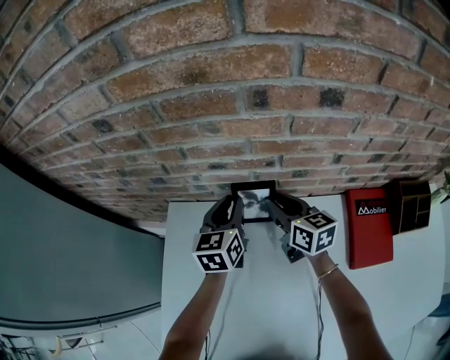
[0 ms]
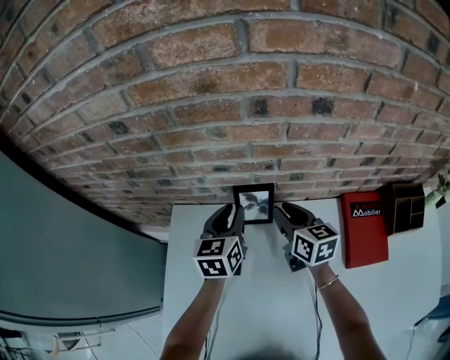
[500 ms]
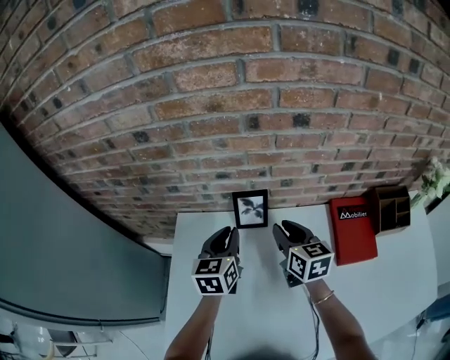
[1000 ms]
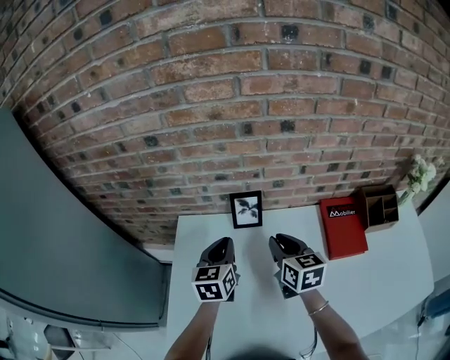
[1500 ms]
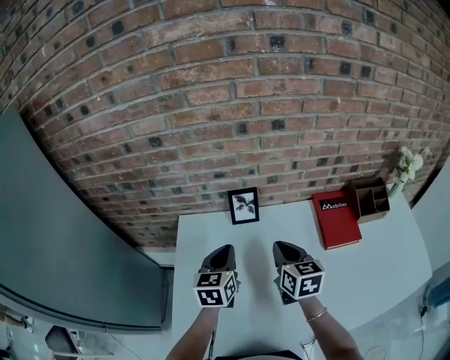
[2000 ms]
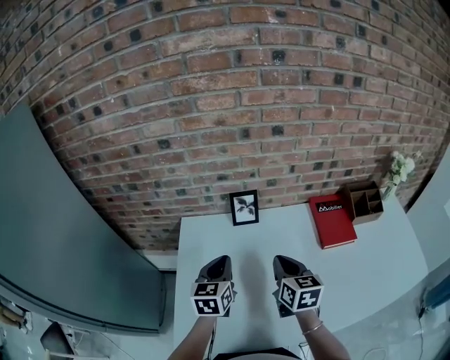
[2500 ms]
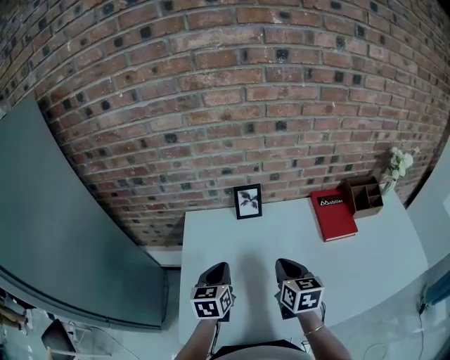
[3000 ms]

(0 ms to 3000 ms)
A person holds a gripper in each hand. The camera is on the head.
0 ms - 1500 ms: The right gripper is displaced backward and upward by approximately 20 cm. The left gripper is displaced backward by approximately 15 cm.
1500 ms - 3000 ms: The grippers both shift backward by roughly 15 cm.

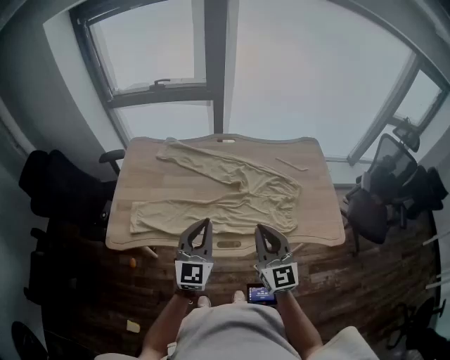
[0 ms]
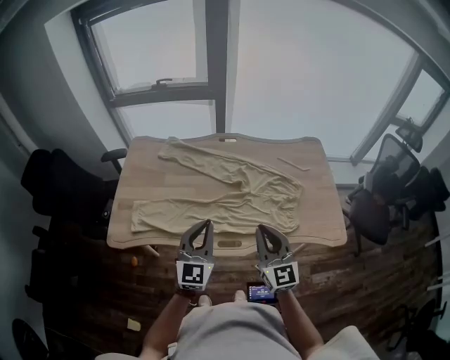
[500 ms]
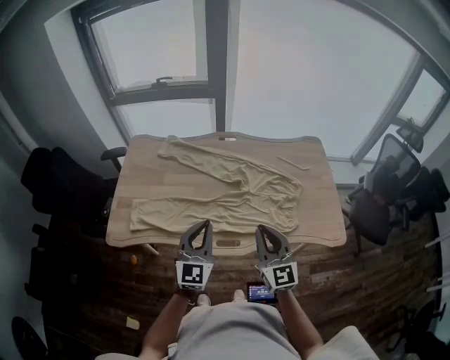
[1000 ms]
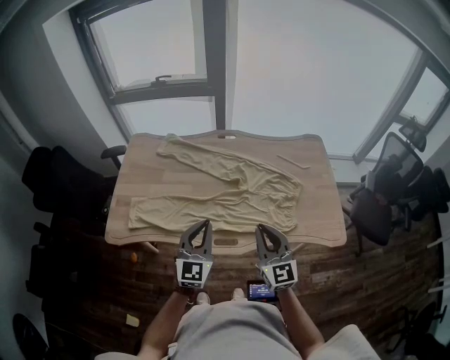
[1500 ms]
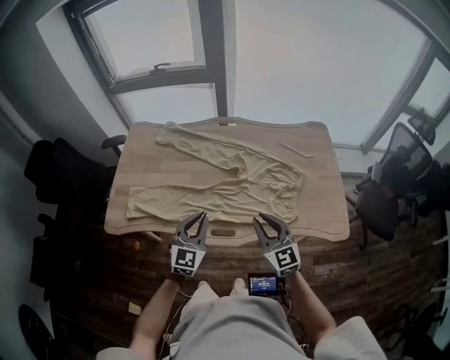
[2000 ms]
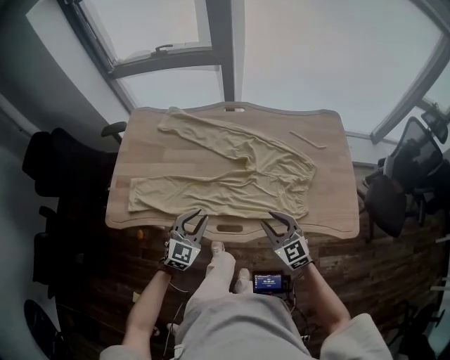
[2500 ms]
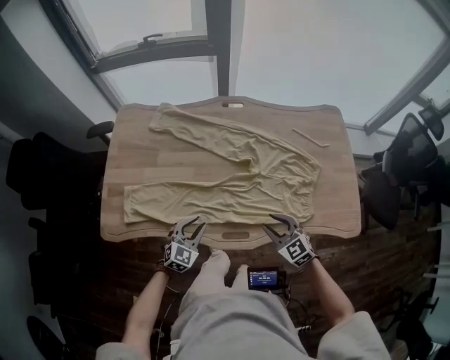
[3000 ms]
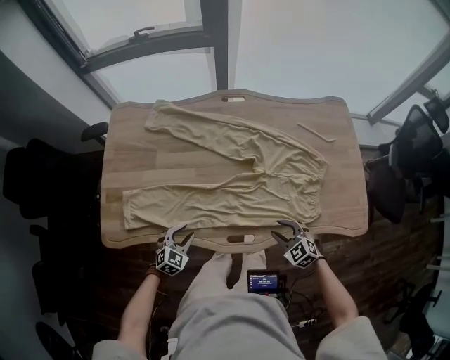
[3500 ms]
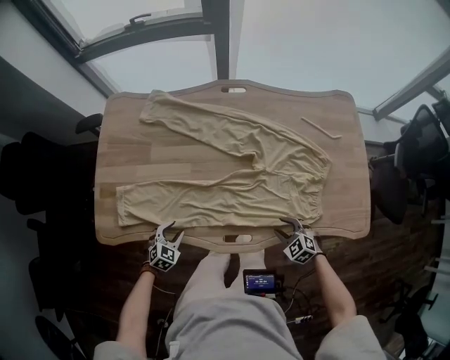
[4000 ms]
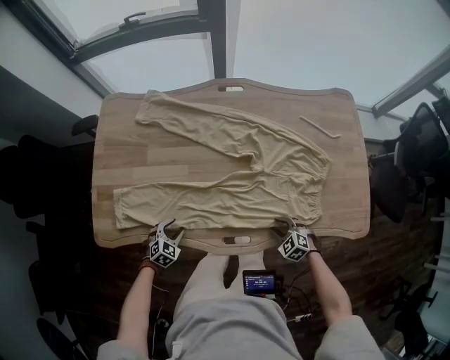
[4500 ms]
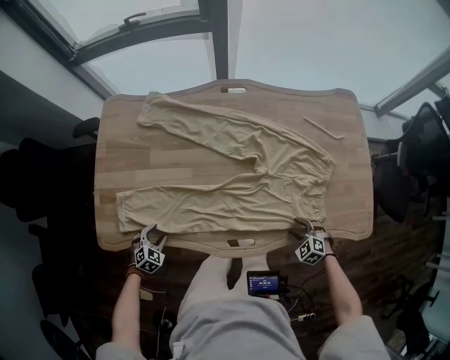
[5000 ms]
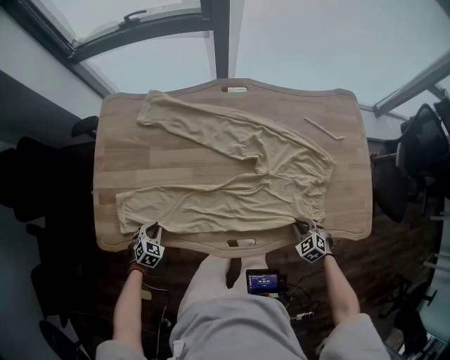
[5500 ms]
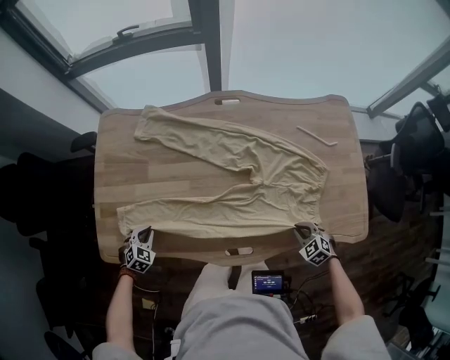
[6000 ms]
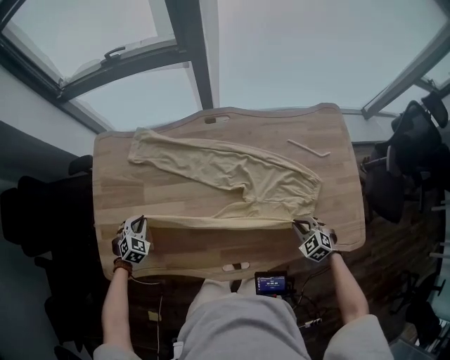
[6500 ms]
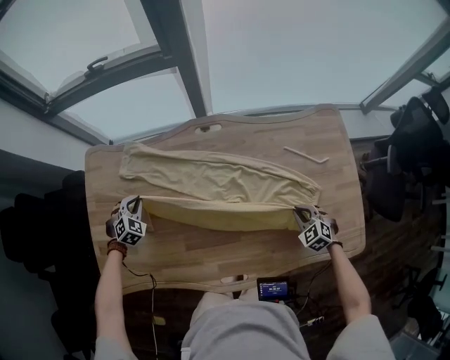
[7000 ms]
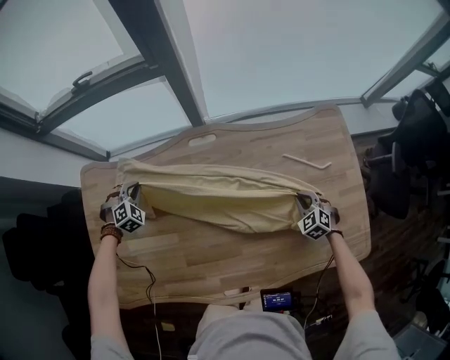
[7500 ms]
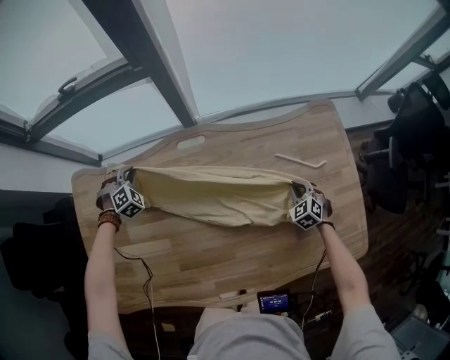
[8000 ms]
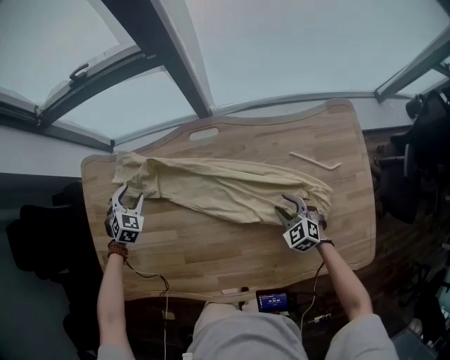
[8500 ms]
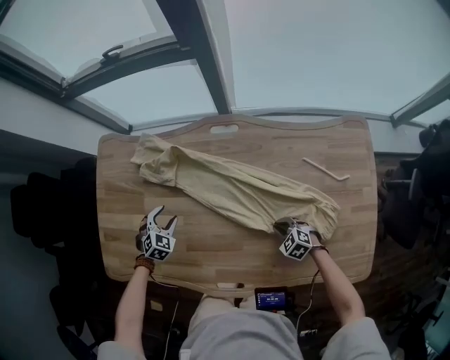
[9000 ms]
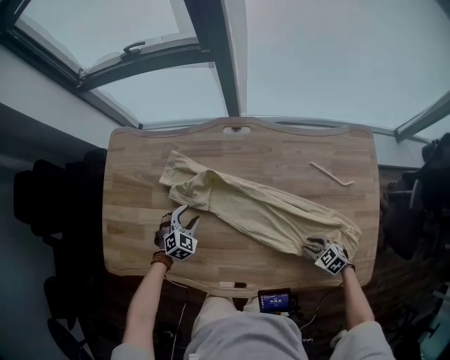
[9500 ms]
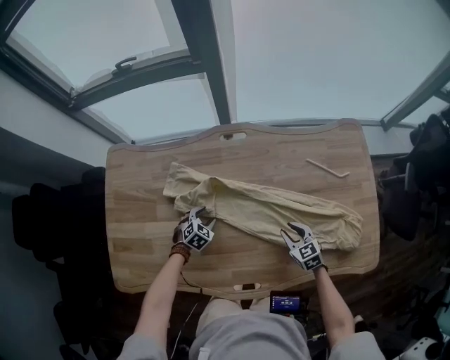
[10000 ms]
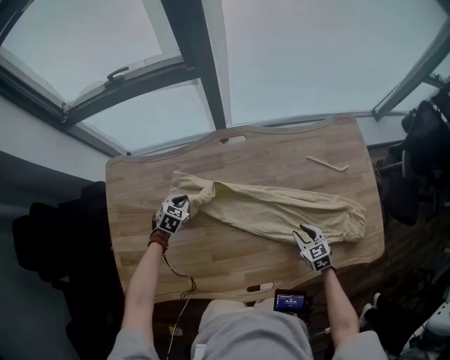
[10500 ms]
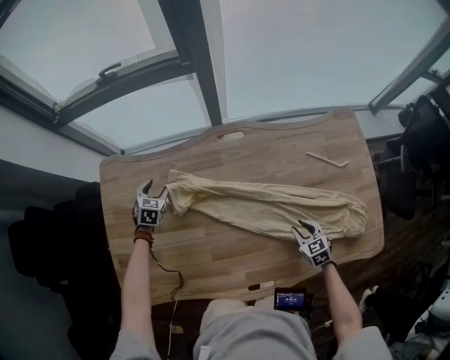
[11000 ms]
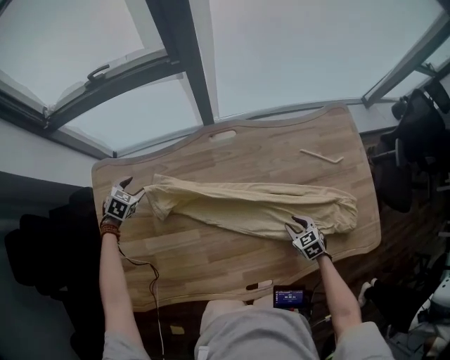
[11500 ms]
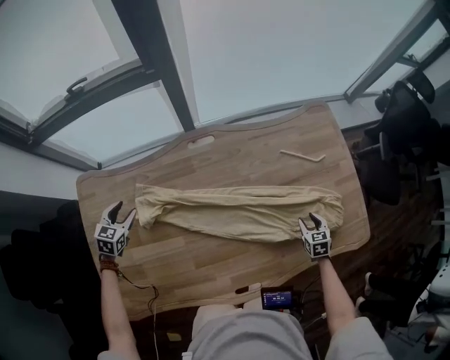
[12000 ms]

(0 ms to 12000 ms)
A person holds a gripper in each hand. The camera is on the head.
0 ms - 2000 ms: The right gripper goes approximately 10 cm downward and to the right, while the left gripper travels downward by about 10 cm.
2000 ms - 4000 ms: The left gripper heads downward and to the left, covering roughly 35 cm, angles its fingers downward, by about 40 degrees, and opens. Meanwhile the right gripper travels downward by approximately 30 cm, points its fingers some 50 degrees further downward, and opens.
4000 ms - 6000 ms: The left gripper goes about 15 cm to the left and forward, and closes its fingers; the right gripper is displaced to the right by about 5 cm, and closes.
6000 ms - 8000 ms: Both grippers move forward and to the right, some 40 cm. The left gripper swivels approximately 40 degrees. Meanwhile the right gripper rotates approximately 20 degrees.
8000 ms - 10000 ms: The right gripper ends up roughly 20 cm from where it was, swivels approximately 30 degrees, and opens up. The left gripper moves some 30 cm, turns by about 40 degrees, and opens up.
10000 ms - 12000 ms: The right gripper changes place by roughly 15 cm, and changes its angle by approximately 40 degrees; the left gripper shifts by approximately 30 cm, swivels about 20 degrees, and closes, then reopens.

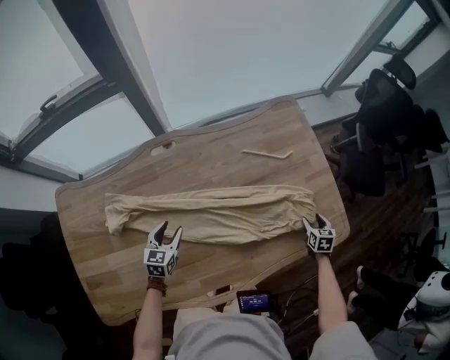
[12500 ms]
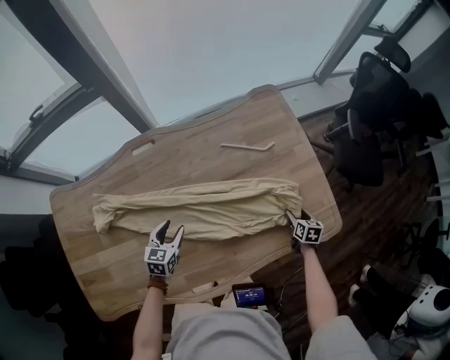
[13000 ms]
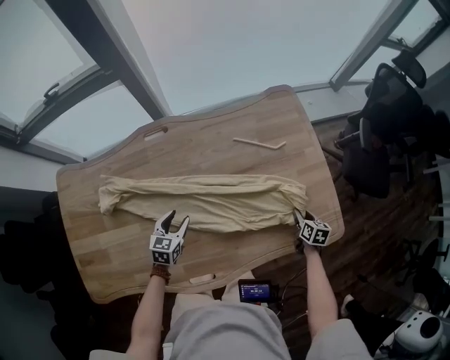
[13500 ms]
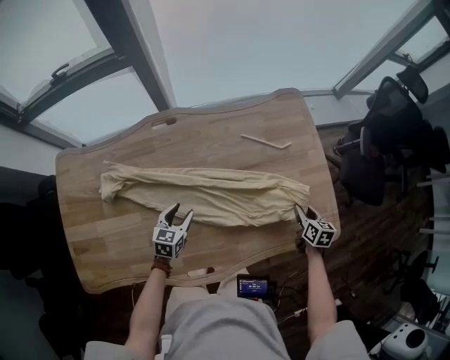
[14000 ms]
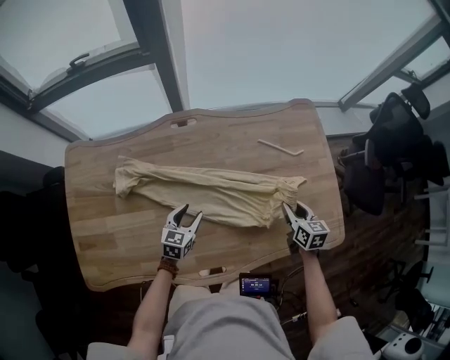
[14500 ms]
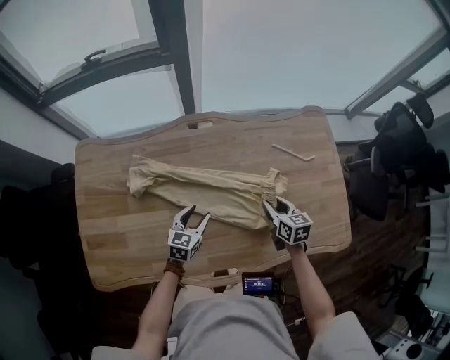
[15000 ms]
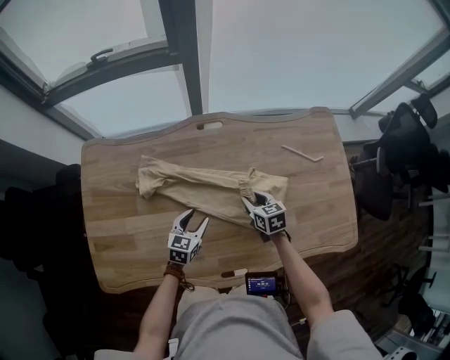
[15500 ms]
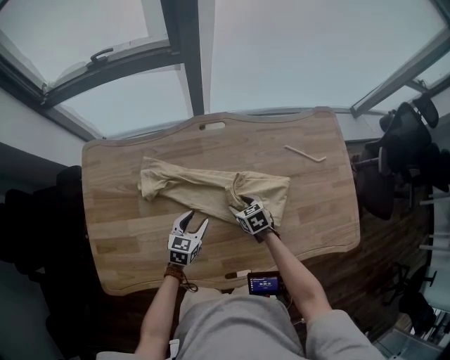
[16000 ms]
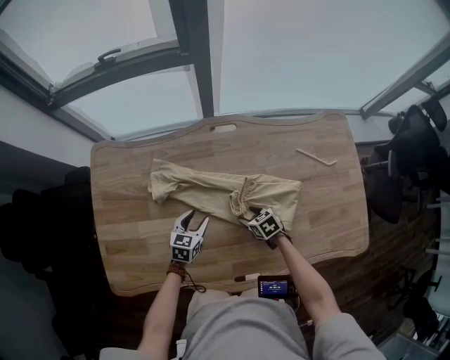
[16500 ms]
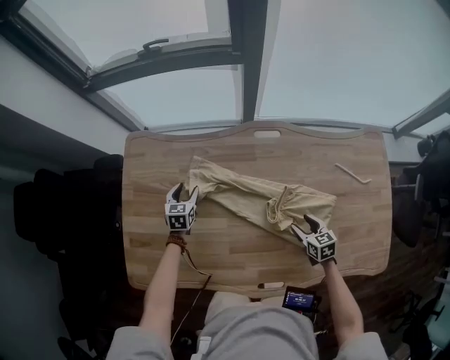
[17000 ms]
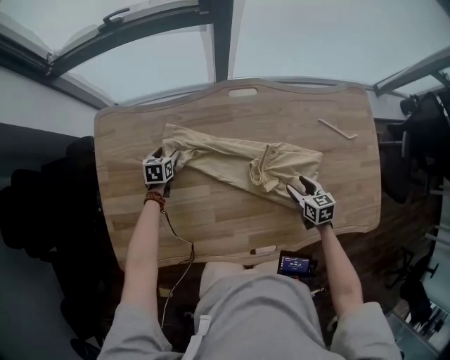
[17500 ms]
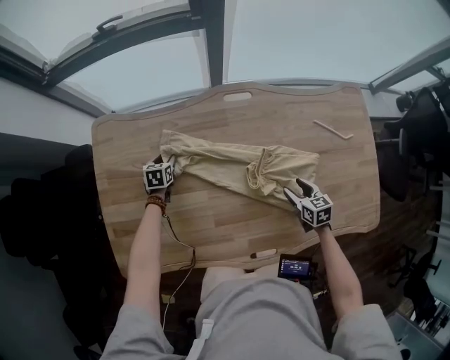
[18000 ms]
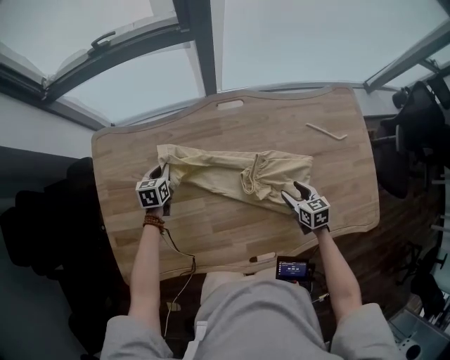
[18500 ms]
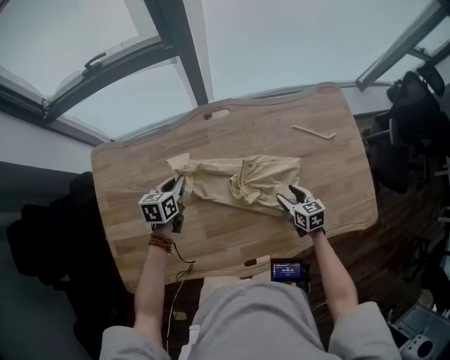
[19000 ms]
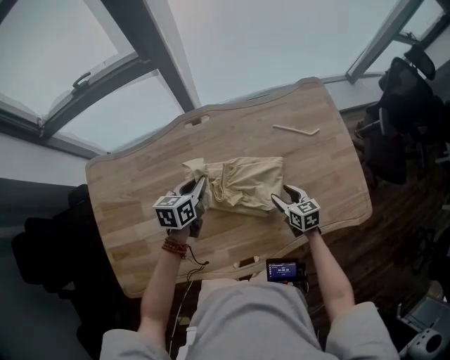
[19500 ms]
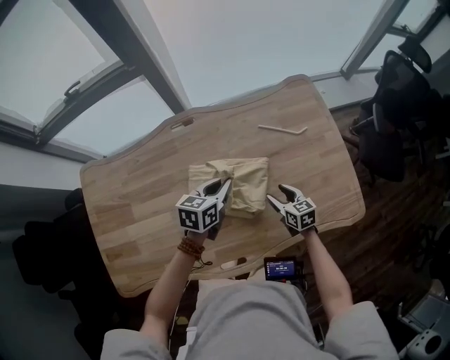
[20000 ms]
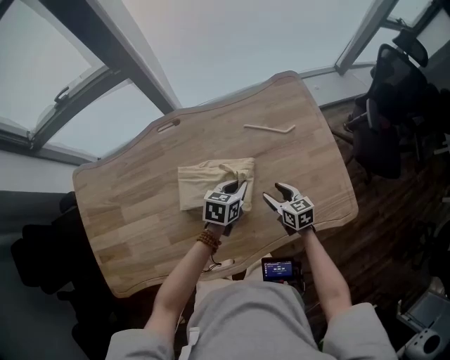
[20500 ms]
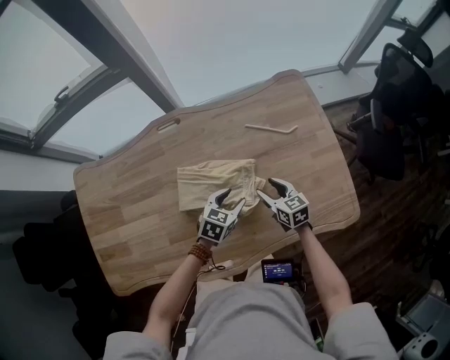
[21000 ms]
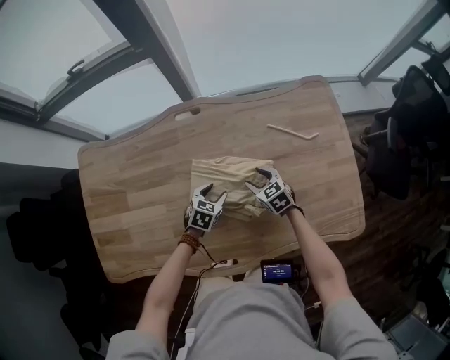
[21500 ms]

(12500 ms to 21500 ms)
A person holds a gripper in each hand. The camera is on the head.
12500 ms - 14500 ms: The left gripper goes about 5 cm to the right. Meanwhile the right gripper travels to the left and upward by about 20 cm, rotates approximately 30 degrees, and closes.
14500 ms - 17000 ms: The right gripper ends up approximately 25 cm from where it was, rotates about 30 degrees, and opens its fingers. The left gripper moves approximately 35 cm, and rotates approximately 30 degrees.
17000 ms - 19500 ms: The right gripper ends up some 15 cm from where it was. The left gripper moves roughly 35 cm, rotates some 30 degrees, and closes its fingers.
19500 ms - 21500 ms: The left gripper travels downward and to the right by approximately 20 cm, turns by approximately 30 degrees, and opens up; the right gripper shifts approximately 10 cm forward, reaches roughly 10 cm to the right, then returns, and turns by about 30 degrees.

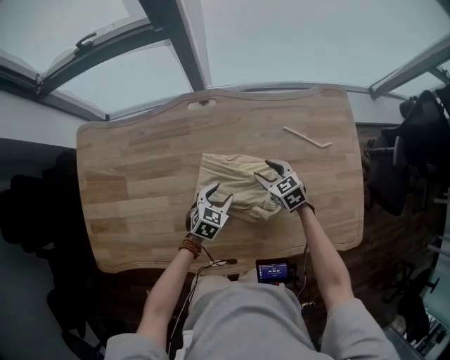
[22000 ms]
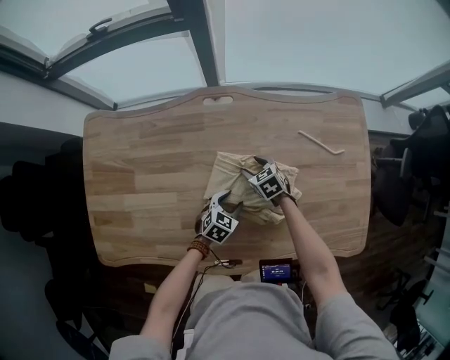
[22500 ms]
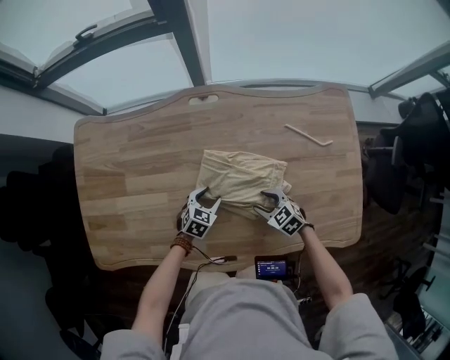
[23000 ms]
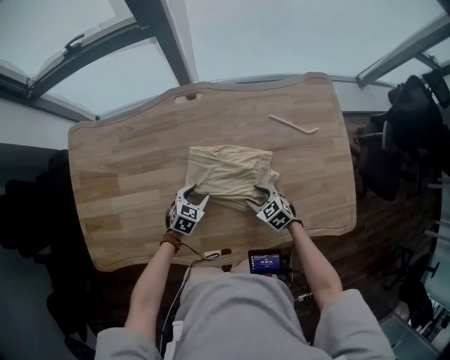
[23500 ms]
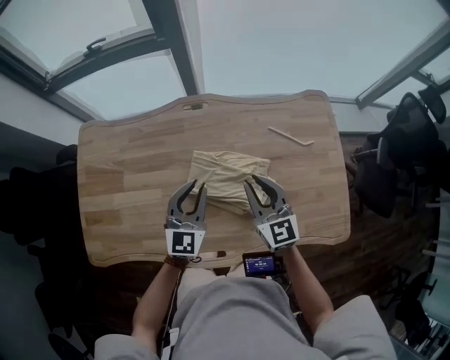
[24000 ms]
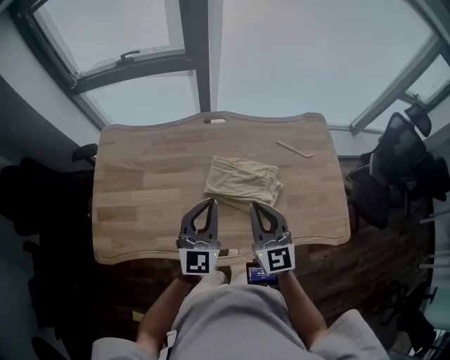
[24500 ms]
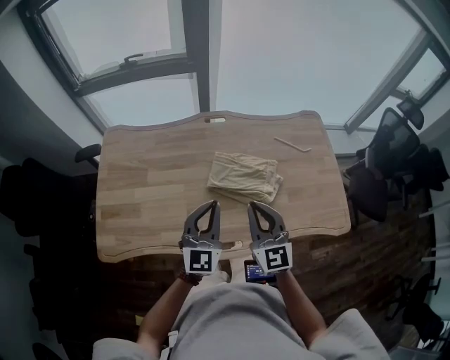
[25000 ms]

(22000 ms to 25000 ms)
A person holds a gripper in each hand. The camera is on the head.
22000 ms - 23500 ms: The right gripper is displaced backward by roughly 15 cm; the left gripper goes about 5 cm to the left.
23500 ms - 25000 ms: The right gripper heads upward, covering some 35 cm, angles its fingers upward, by roughly 50 degrees, and closes up. Meanwhile the left gripper shifts some 40 cm upward and backward, tips its fingers upward by roughly 50 degrees, and closes.
